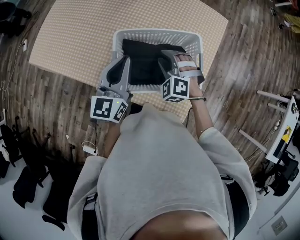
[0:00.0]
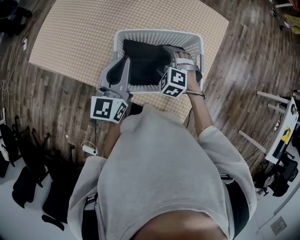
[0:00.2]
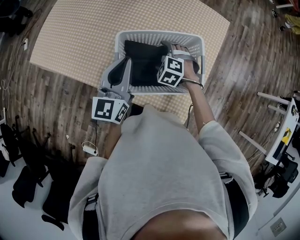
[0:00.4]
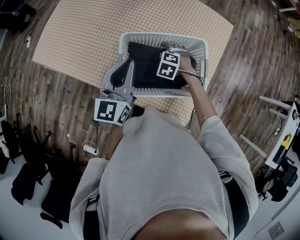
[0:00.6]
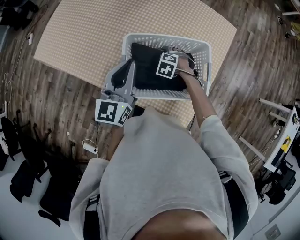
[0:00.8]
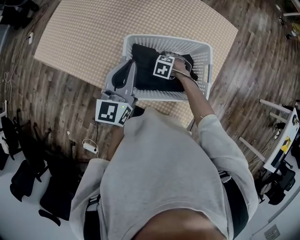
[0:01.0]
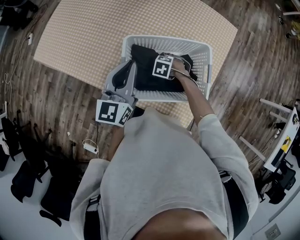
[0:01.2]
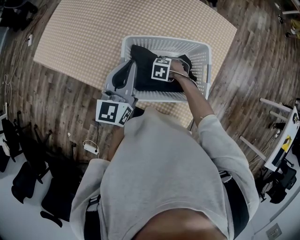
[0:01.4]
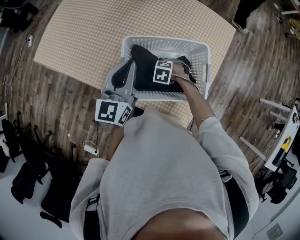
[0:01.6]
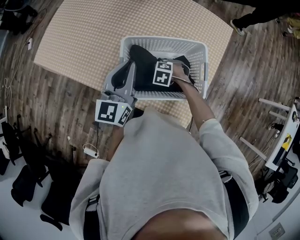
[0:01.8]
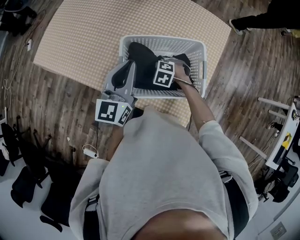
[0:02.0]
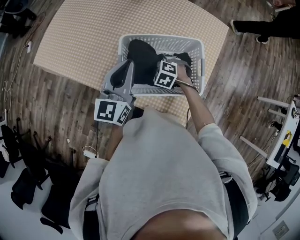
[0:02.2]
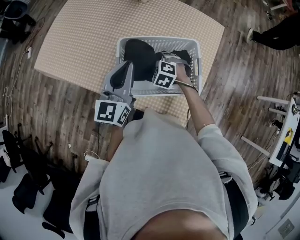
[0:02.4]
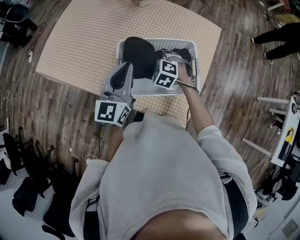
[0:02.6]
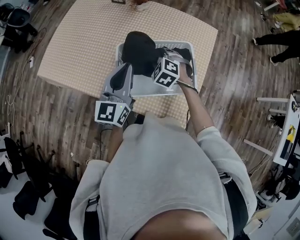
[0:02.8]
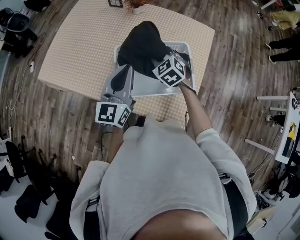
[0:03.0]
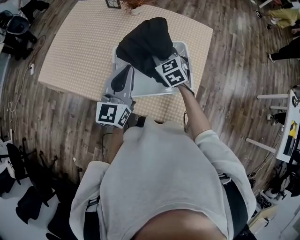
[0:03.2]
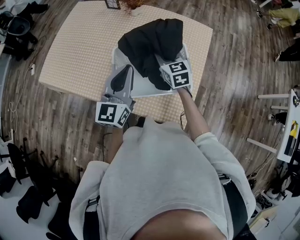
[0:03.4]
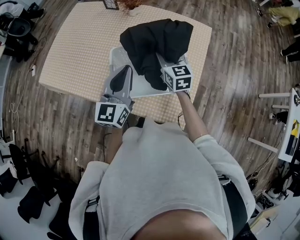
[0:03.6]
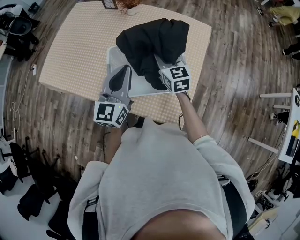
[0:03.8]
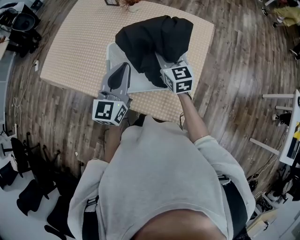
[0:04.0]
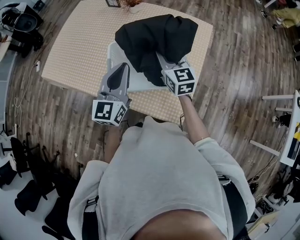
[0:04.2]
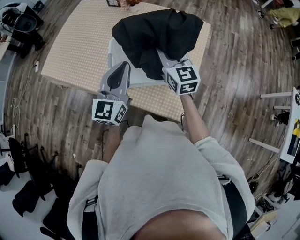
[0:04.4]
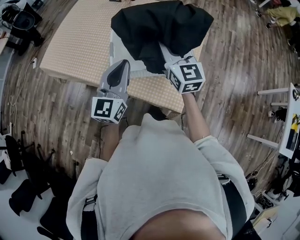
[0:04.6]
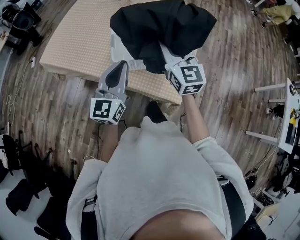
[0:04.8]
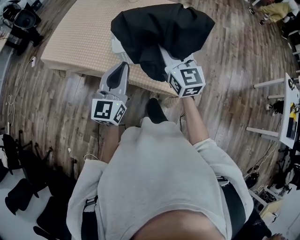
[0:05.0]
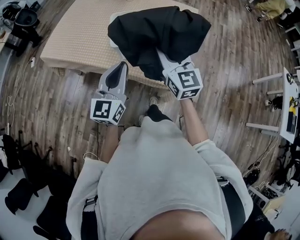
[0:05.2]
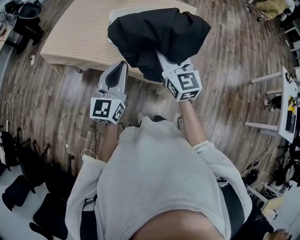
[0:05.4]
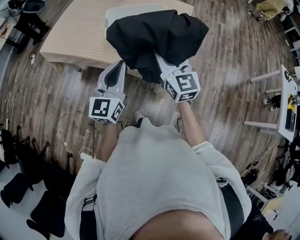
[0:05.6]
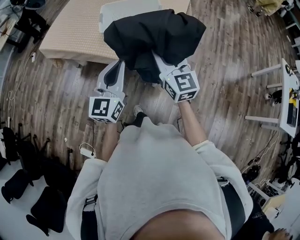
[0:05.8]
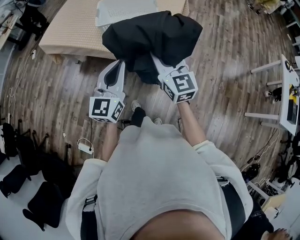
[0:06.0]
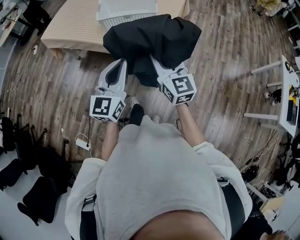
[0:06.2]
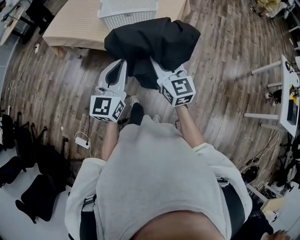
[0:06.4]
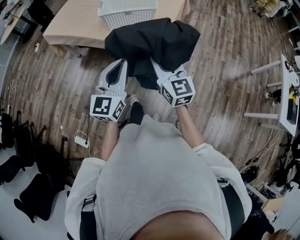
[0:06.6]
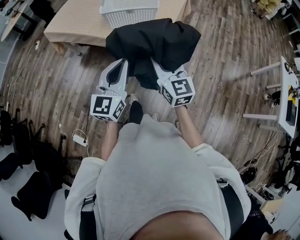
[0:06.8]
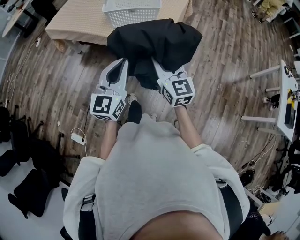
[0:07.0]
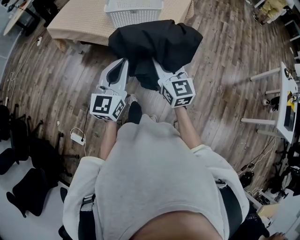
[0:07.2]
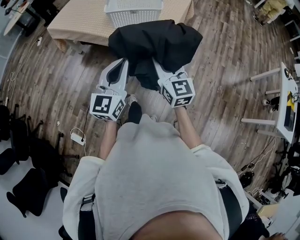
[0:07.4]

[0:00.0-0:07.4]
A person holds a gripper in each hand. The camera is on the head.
0:00.0 to 0:01.4: The right gripper goes roughly 20 cm downward, tips its fingers downward by approximately 40 degrees, and opens, then closes again.
0:01.4 to 0:03.0: The right gripper moves upward, some 25 cm, and tips its fingers upward by roughly 40 degrees. The left gripper is displaced upward by approximately 5 cm.
0:03.0 to 0:04.4: The right gripper heads upward, backward and to the right, covering approximately 15 cm, and tilts its fingers approximately 30 degrees upward, while the left gripper goes about 5 cm backward.
0:04.4 to 0:06.0: The two grippers go roughly 40 cm backward.
0:06.0 to 0:07.4: The grippers both shift backward by approximately 10 cm.

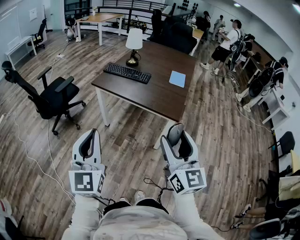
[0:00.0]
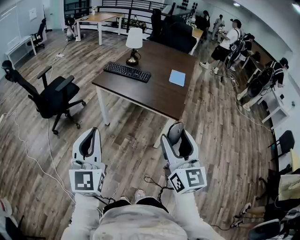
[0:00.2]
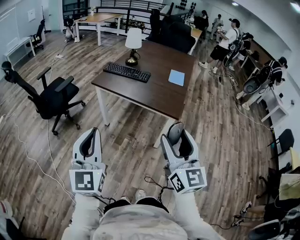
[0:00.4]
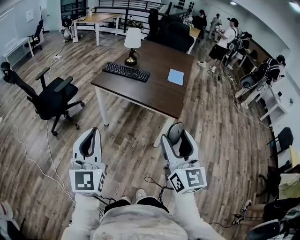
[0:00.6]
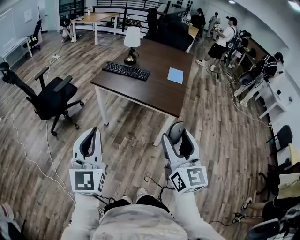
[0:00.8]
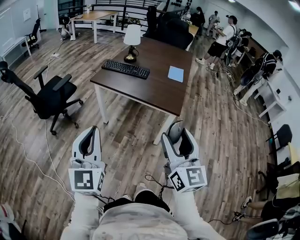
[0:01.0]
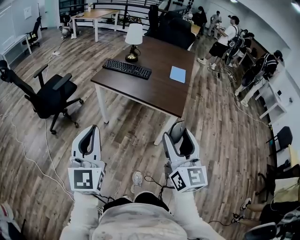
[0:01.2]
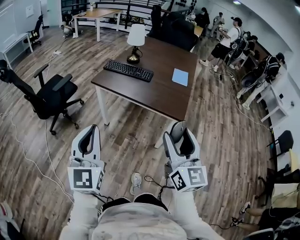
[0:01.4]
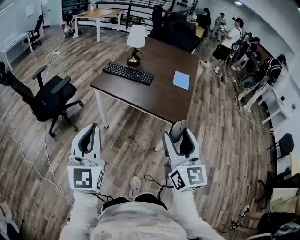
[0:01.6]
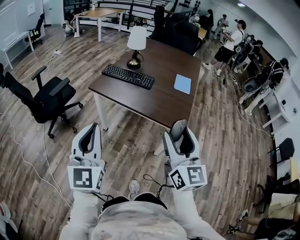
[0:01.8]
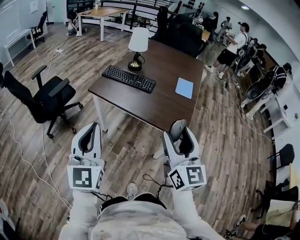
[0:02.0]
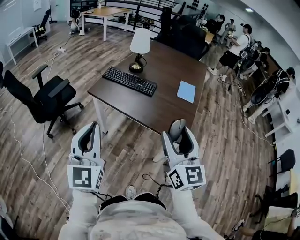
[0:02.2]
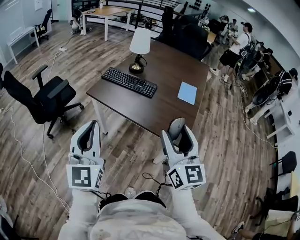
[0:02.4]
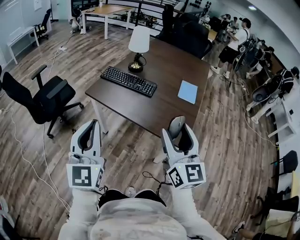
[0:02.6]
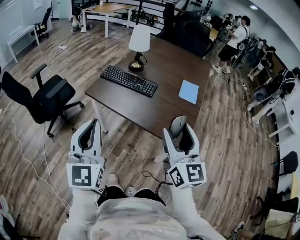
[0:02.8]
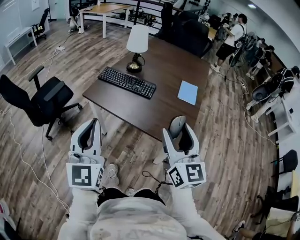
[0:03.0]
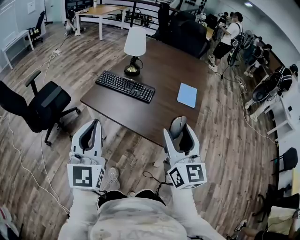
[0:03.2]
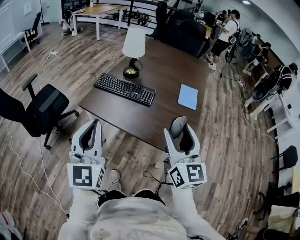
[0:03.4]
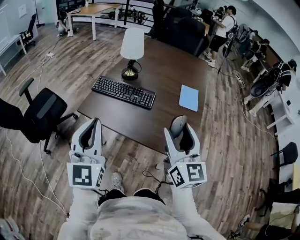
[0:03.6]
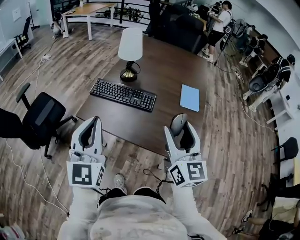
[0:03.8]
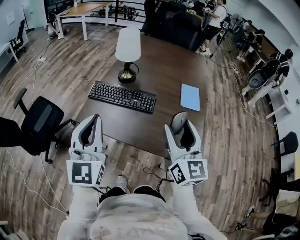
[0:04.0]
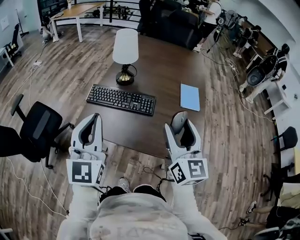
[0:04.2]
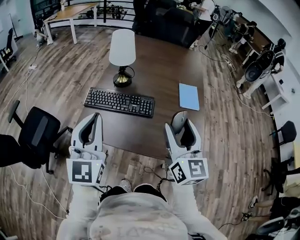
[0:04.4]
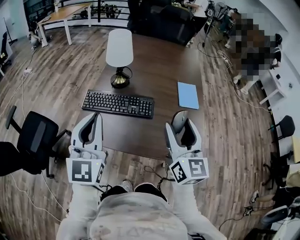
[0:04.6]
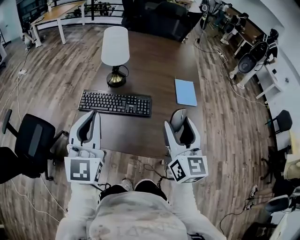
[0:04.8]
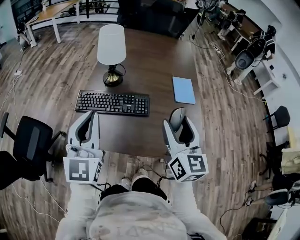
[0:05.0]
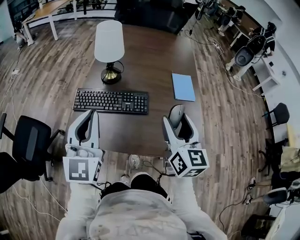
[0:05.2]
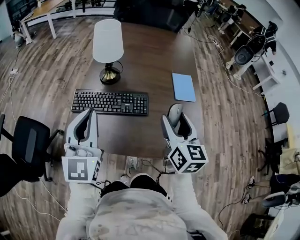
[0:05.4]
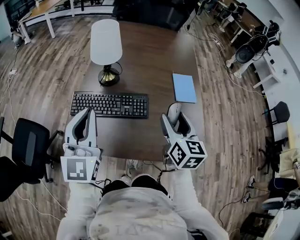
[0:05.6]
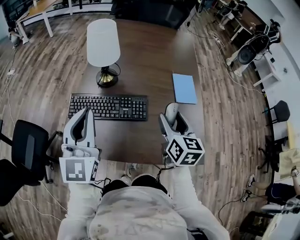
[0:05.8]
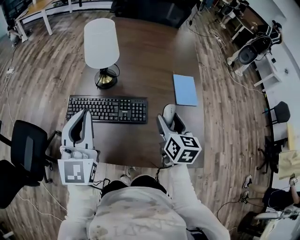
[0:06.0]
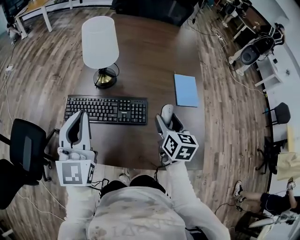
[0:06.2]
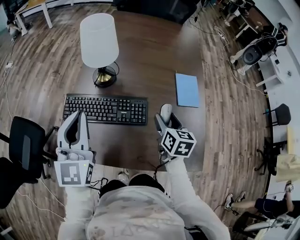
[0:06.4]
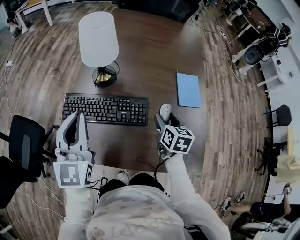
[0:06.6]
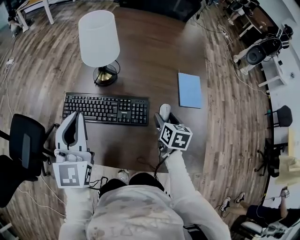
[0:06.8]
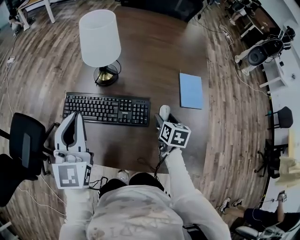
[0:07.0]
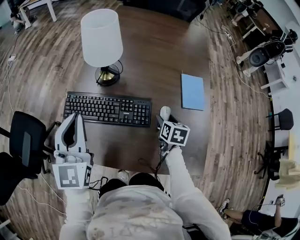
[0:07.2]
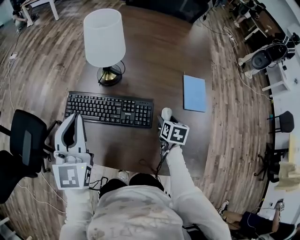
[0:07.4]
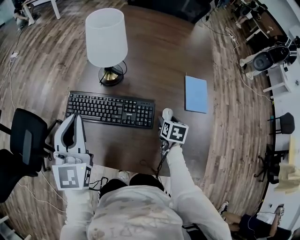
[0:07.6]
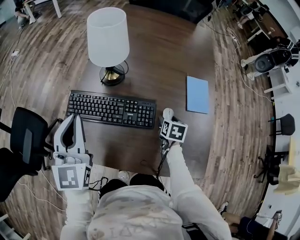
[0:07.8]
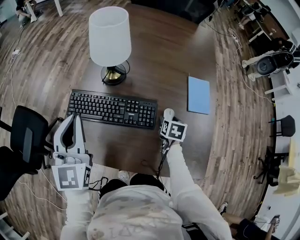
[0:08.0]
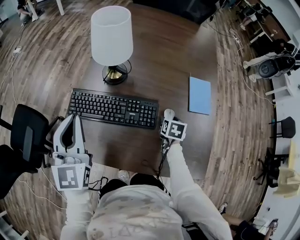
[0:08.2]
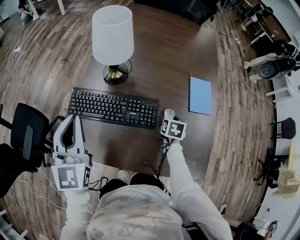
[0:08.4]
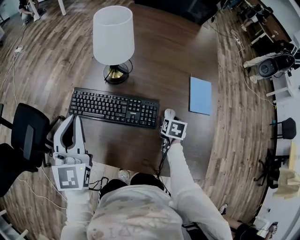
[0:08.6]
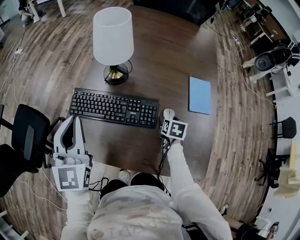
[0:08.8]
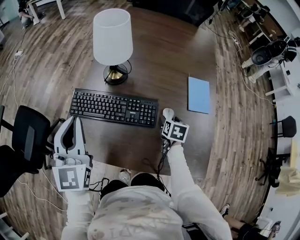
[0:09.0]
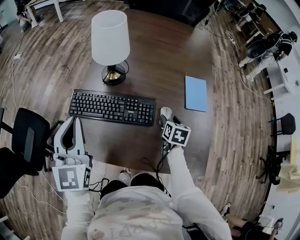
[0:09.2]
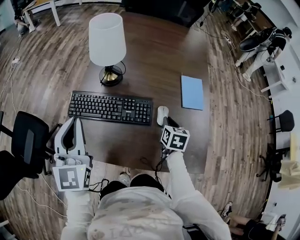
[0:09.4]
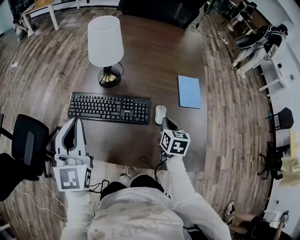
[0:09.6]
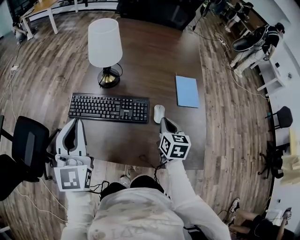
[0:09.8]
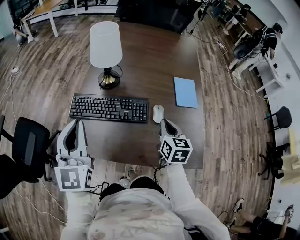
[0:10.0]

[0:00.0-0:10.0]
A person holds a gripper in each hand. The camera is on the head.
0:00.0 to 0:01.4: The left gripper travels forward by some 5 cm; the right gripper moves some 5 cm.
0:01.4 to 0:02.8: Both grippers travel together forward, some 25 cm.
0:02.8 to 0:04.2: Both grippers travel together forward, some 25 cm.
0:04.2 to 0:05.8: The right gripper shifts about 20 cm forward and downward, and changes its angle by roughly 30 degrees. Meanwhile the left gripper moves forward, about 20 cm.
0:05.8 to 0:07.2: The left gripper shifts about 5 cm forward; the right gripper travels downward and forward by about 20 cm, and changes its angle by about 30 degrees.
0:07.2 to 0:08.6: The grippers stay close to where they were, moving slightly.
0:08.6 to 0:10.0: The right gripper shifts about 20 cm upward and backward, tips its fingers upward by roughly 30 degrees, and closes up, while the left gripper shifts about 10 cm backward.

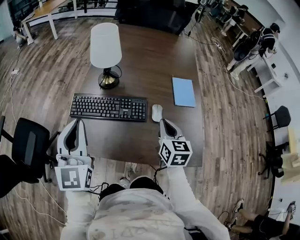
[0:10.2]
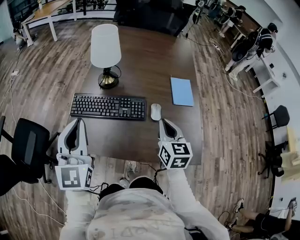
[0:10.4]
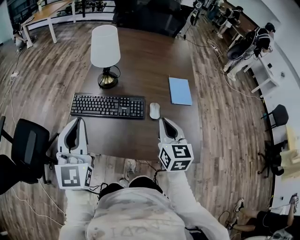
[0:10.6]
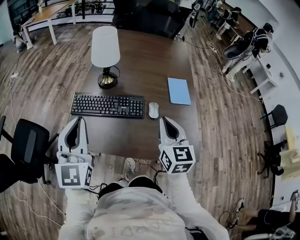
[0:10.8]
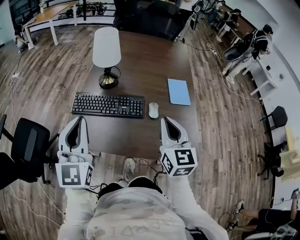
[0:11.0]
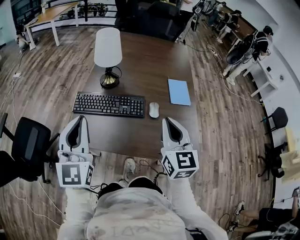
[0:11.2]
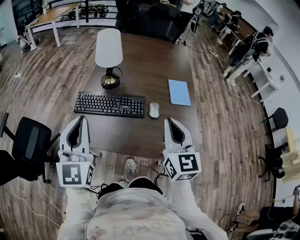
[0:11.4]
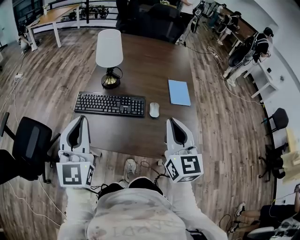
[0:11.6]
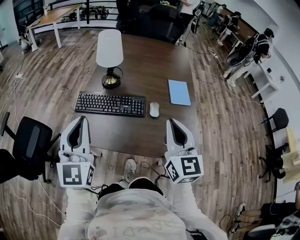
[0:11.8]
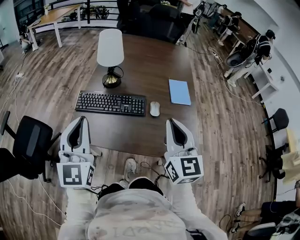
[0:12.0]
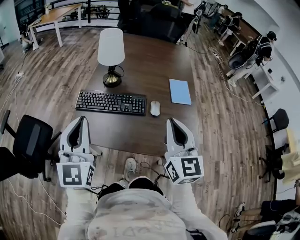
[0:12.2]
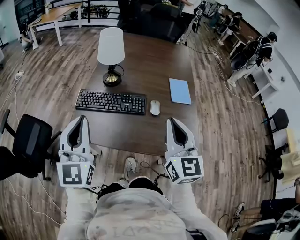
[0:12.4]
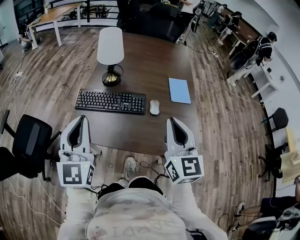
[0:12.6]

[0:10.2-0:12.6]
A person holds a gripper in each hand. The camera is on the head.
0:10.2 to 0:11.4: The left gripper is displaced backward by about 10 cm. The right gripper is displaced upward and backward by approximately 20 cm, and rotates about 20 degrees.
0:11.4 to 0:12.6: There are only small adjustments of the grippers.

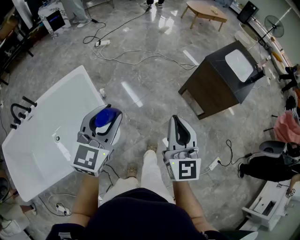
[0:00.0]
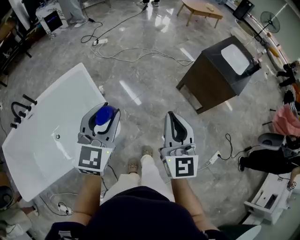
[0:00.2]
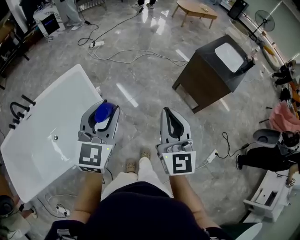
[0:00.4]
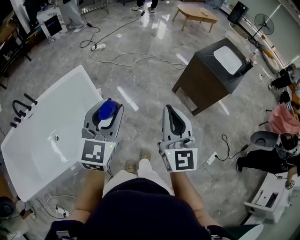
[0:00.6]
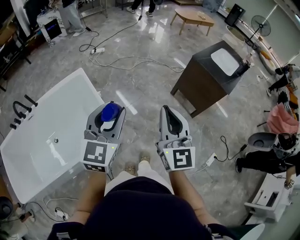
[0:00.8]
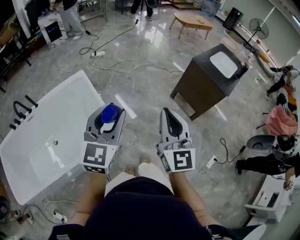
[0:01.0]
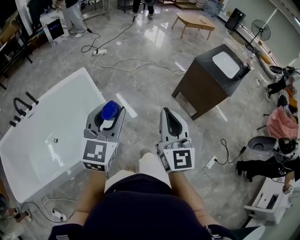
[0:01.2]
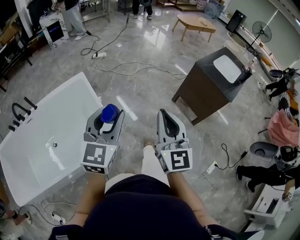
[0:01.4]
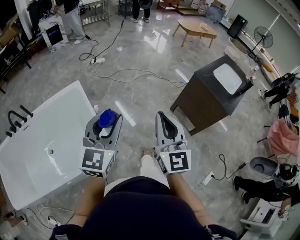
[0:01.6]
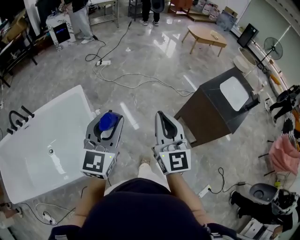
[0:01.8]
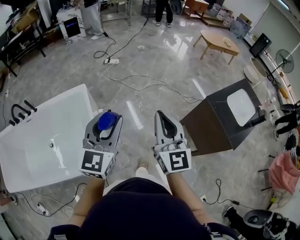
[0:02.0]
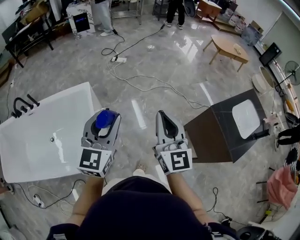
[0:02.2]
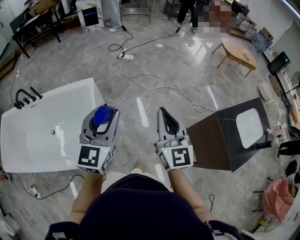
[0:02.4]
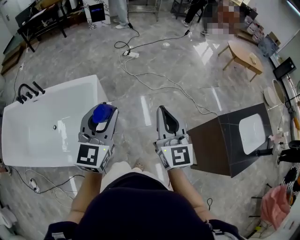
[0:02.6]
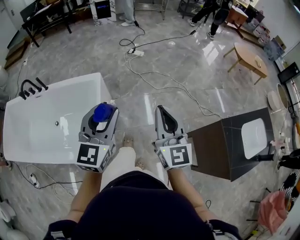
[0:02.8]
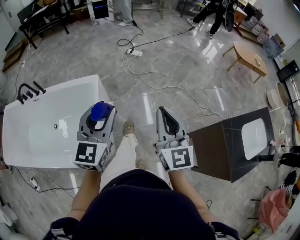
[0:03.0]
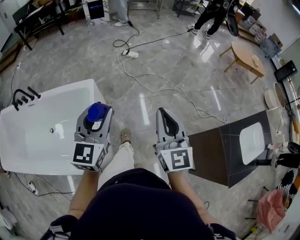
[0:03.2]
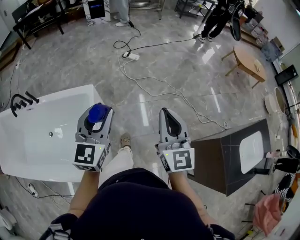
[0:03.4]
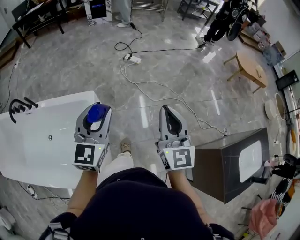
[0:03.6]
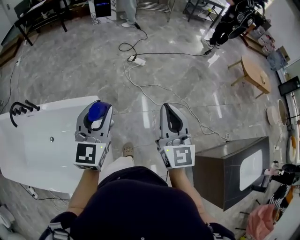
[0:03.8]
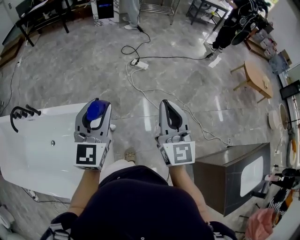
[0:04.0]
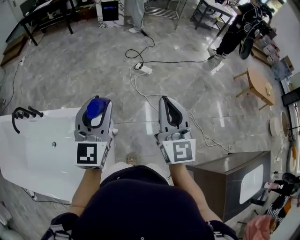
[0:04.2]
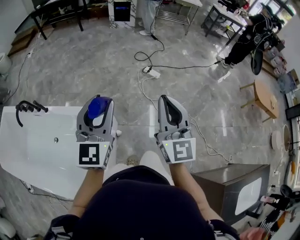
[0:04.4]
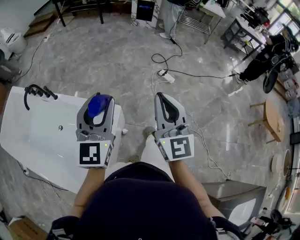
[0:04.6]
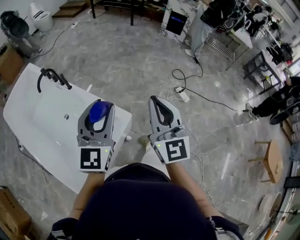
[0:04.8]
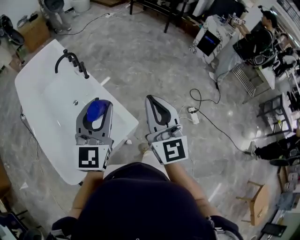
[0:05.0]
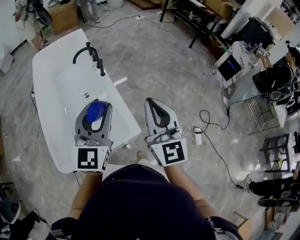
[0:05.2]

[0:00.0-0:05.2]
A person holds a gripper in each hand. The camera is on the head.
0:00.0 to 0:01.8: Both grippers travel together forward, some 10 cm.
0:01.8 to 0:03.4: Both grippers move forward, approximately 30 cm. The left gripper changes its angle by about 20 degrees.
0:03.4 to 0:05.2: The right gripper moves roughly 60 cm, and swivels roughly 80 degrees. The left gripper ends up some 35 cm from where it was, and turns by roughly 70 degrees.
